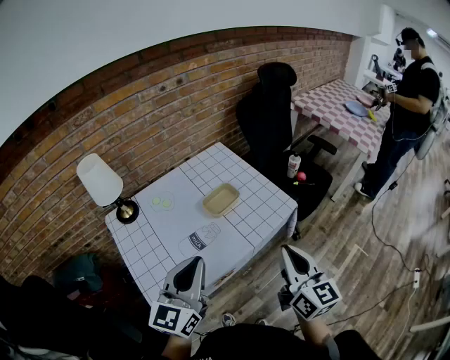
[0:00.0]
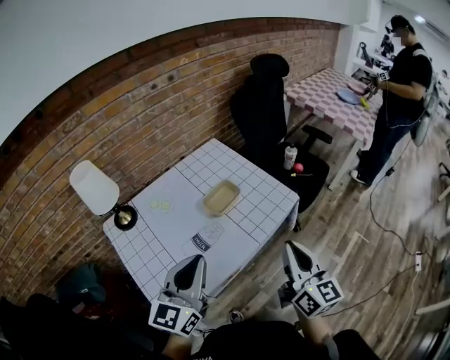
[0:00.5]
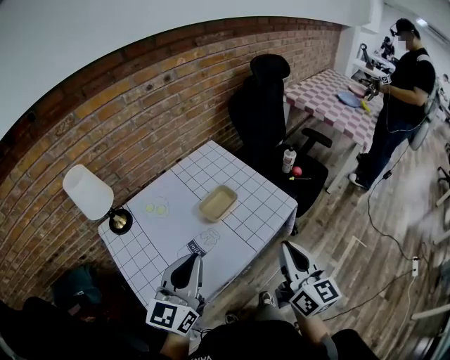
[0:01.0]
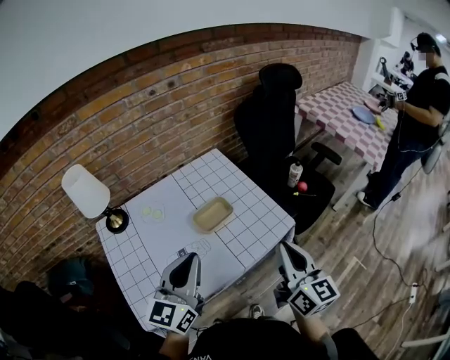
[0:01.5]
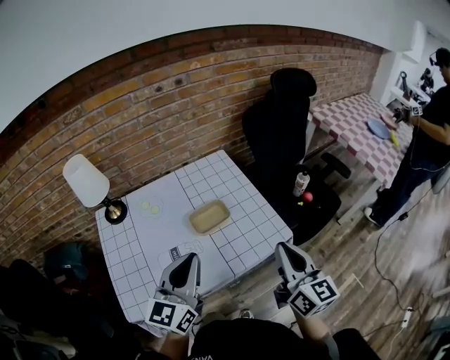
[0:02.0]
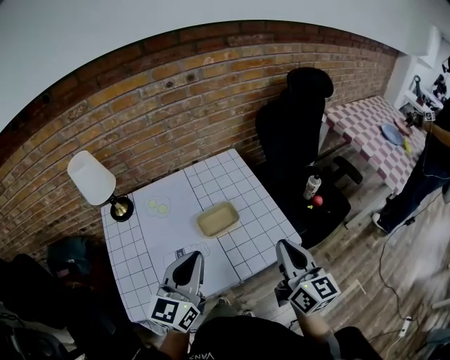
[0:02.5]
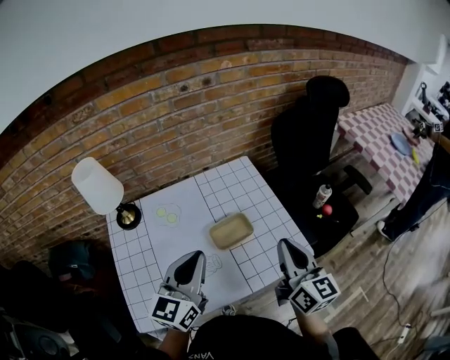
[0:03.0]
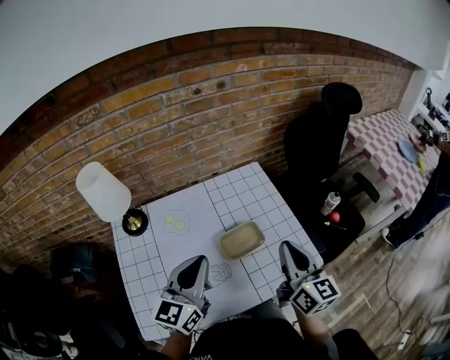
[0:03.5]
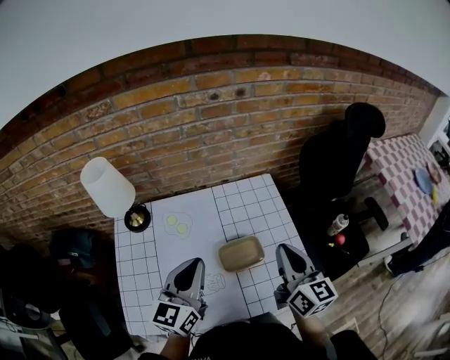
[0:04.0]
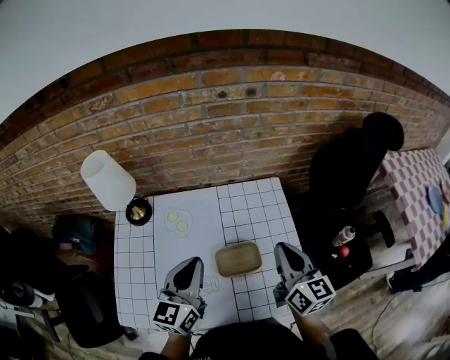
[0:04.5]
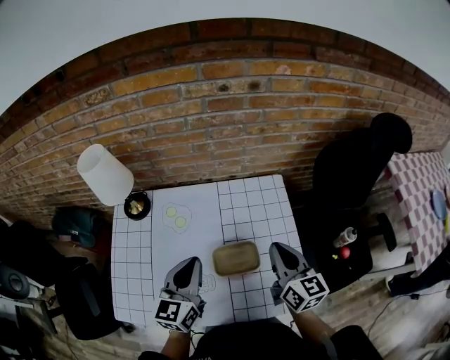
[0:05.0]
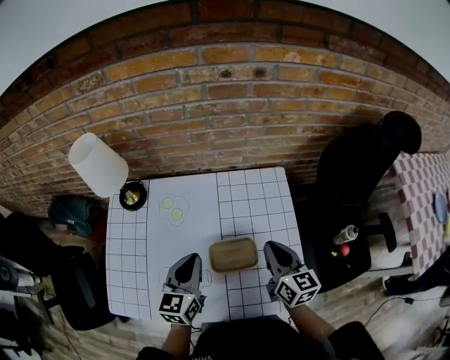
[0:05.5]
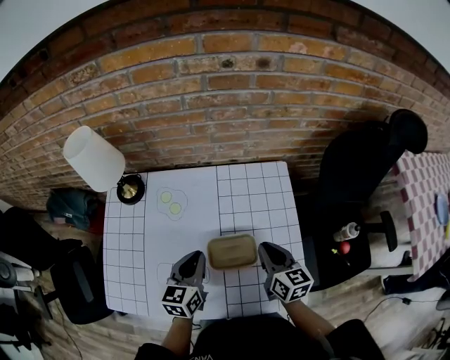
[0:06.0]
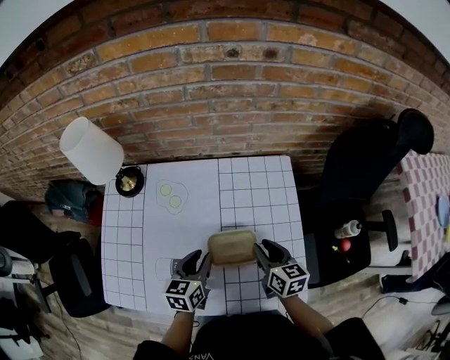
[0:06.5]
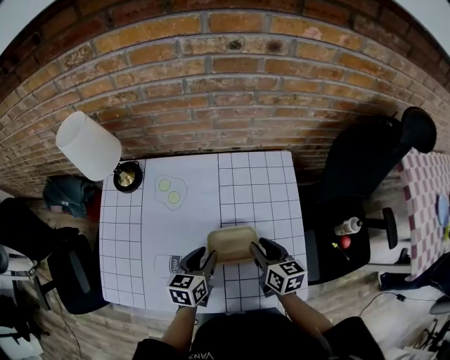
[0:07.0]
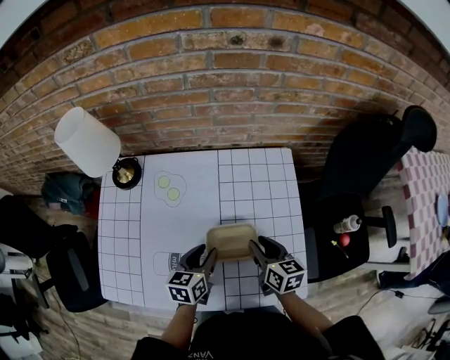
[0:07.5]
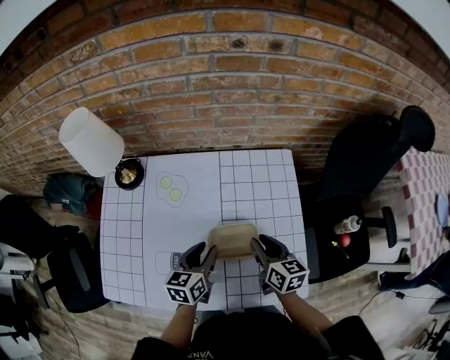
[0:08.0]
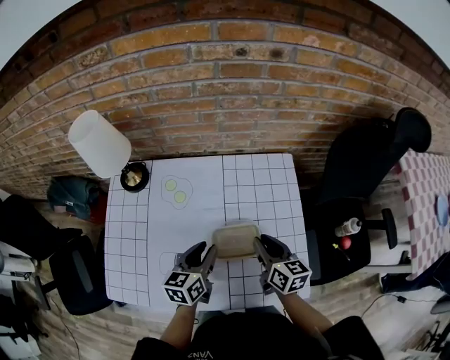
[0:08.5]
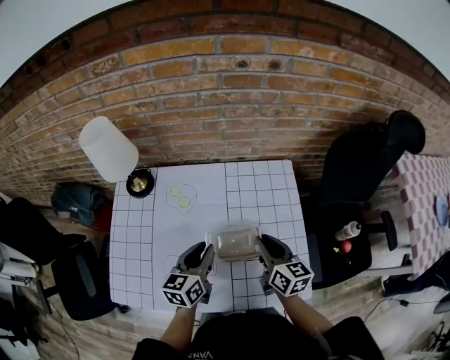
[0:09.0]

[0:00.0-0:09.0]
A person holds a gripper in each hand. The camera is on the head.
0.0 to 2.0 s: The grippers both shift forward and to the right by approximately 15 cm.
2.0 to 4.5 s: The grippers both shift forward by approximately 20 cm. The left gripper swivels some 20 degrees. Meanwhile the right gripper rotates approximately 20 degrees.
4.5 to 7.0 s: The two grippers go some 20 cm downward. The left gripper rotates roughly 30 degrees, and opens its fingers, while the right gripper changes its angle by approximately 30 degrees, and opens up.
7.0 to 9.0 s: Both grippers move upward, some 10 cm.

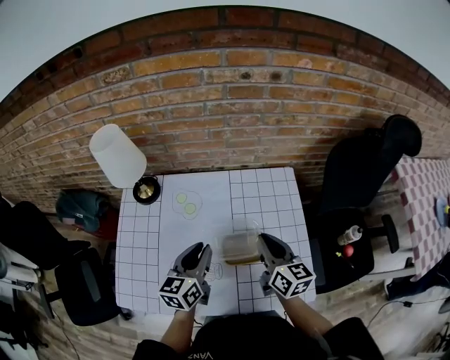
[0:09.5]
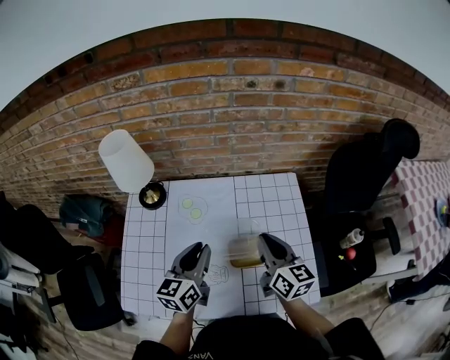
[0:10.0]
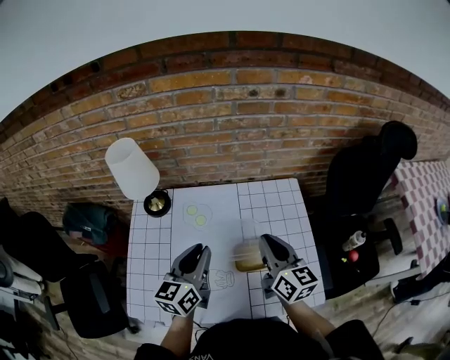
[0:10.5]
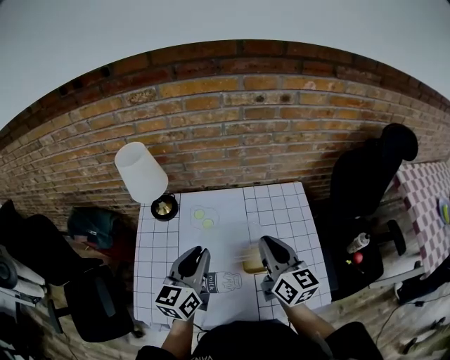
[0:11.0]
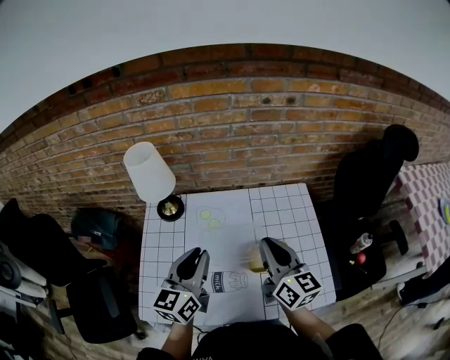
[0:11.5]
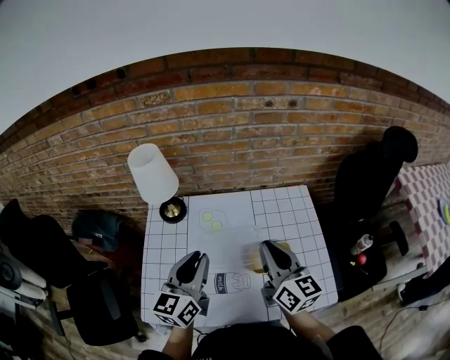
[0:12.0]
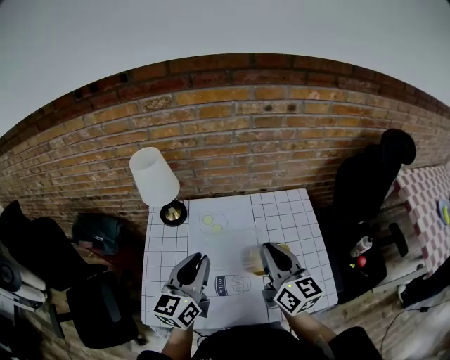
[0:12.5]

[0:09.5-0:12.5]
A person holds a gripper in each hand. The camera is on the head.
9.5 to 11.0 s: Both grippers move upward and to the left, roughly 10 cm.
11.0 to 12.5 s: The right gripper moves roughly 5 cm; the left gripper shifts by approximately 5 cm.

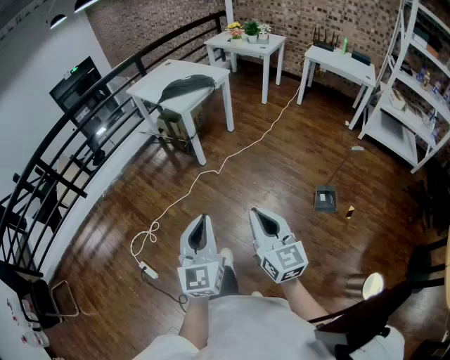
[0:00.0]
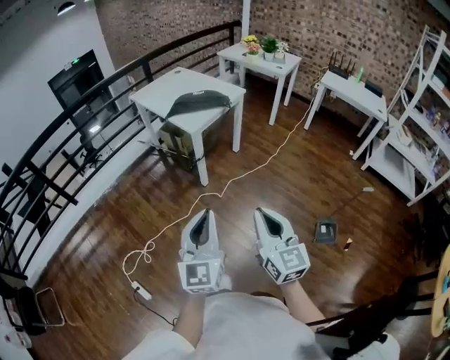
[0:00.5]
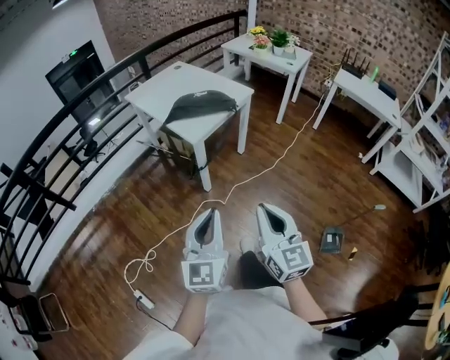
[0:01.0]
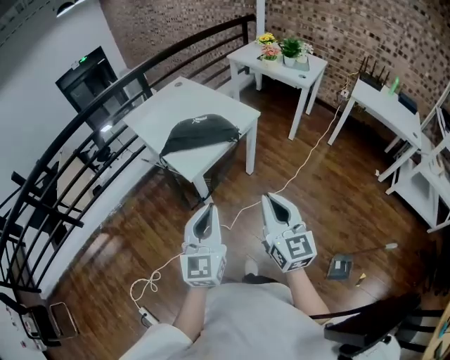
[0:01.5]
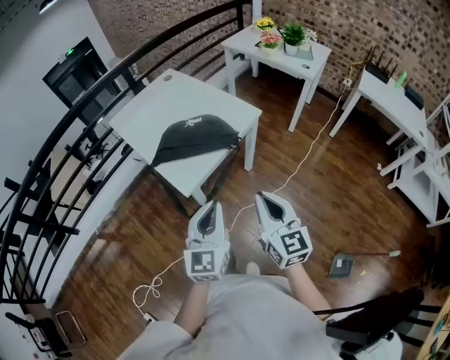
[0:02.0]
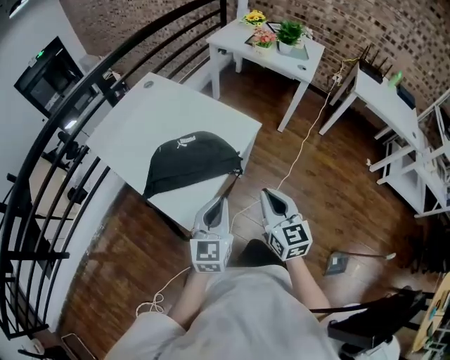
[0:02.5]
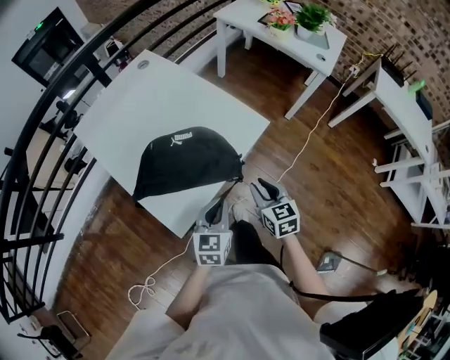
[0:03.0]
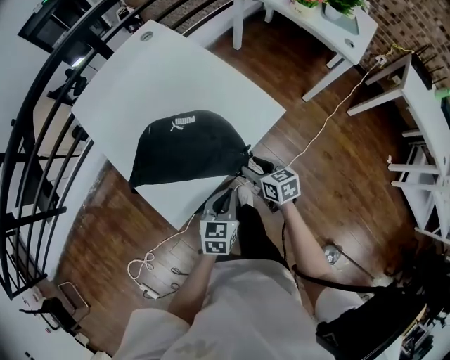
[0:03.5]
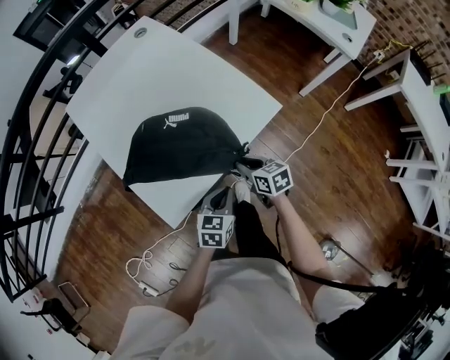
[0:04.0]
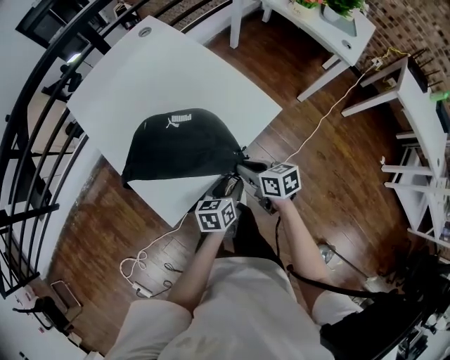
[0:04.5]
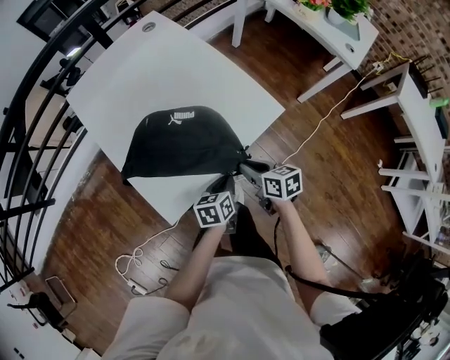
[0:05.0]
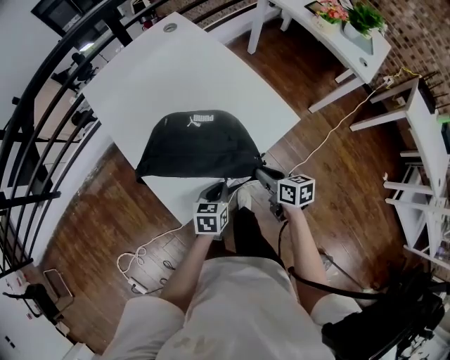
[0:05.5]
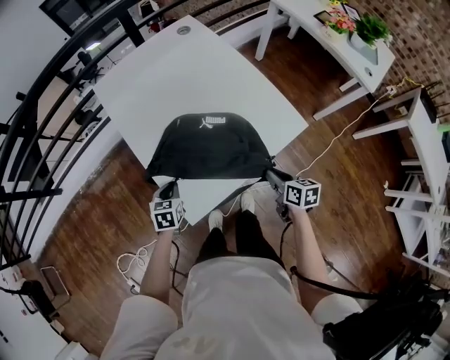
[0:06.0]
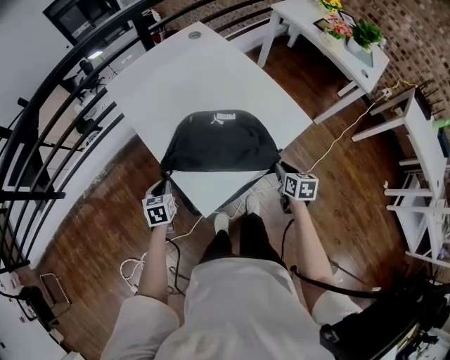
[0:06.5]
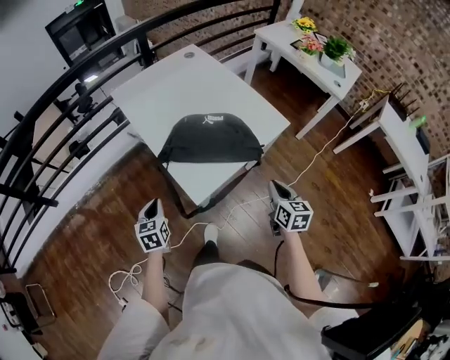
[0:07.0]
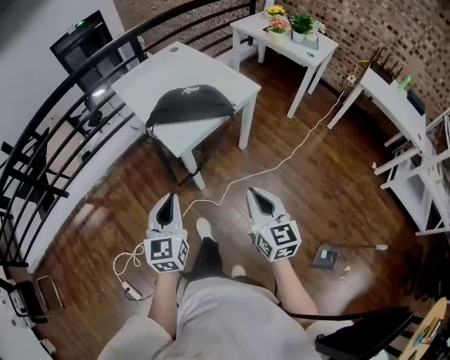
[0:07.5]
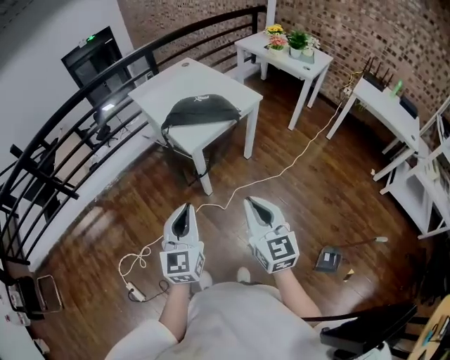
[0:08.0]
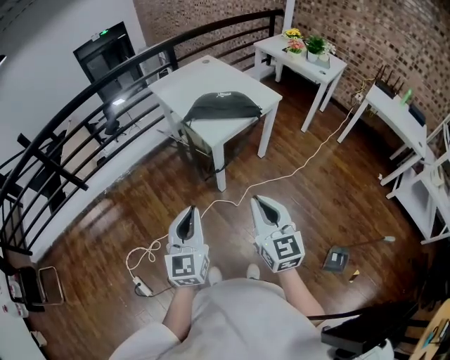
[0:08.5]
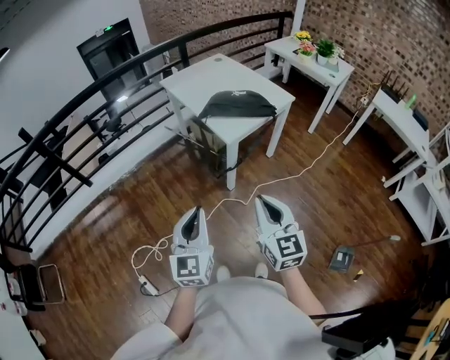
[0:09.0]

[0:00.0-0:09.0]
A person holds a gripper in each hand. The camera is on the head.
0.0 to 2.0 s: The two grippers travel together, forward, about 70 cm.
2.0 to 4.5 s: The right gripper is displaced forward and downward by some 40 cm, rotates approximately 50 degrees, and opens, then closes again. Meanwhile the left gripper goes roughly 40 cm downward and forward, points its fingers approximately 30 degrees further downward, and opens up.
4.5 to 7.0 s: The right gripper travels backward and upward by approximately 15 cm, and swivels about 30 degrees. Meanwhile the left gripper is displaced to the left by approximately 40 cm, turns by about 30 degrees, and closes its fingers.
7.0 to 9.0 s: The pair of grippers is taken backward, approximately 40 cm. The two grippers go about 20 cm upward. The left gripper points its fingers some 30 degrees further upward, while the right gripper swivels approximately 30 degrees.

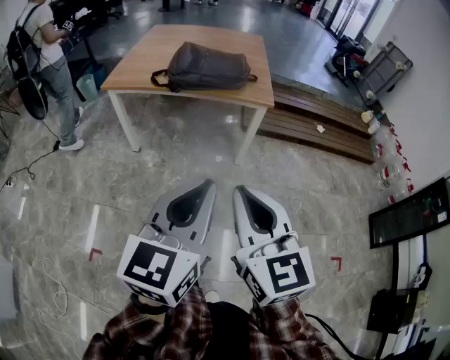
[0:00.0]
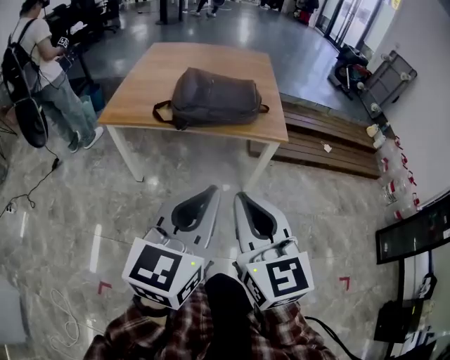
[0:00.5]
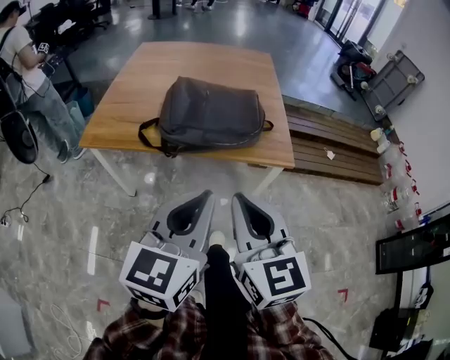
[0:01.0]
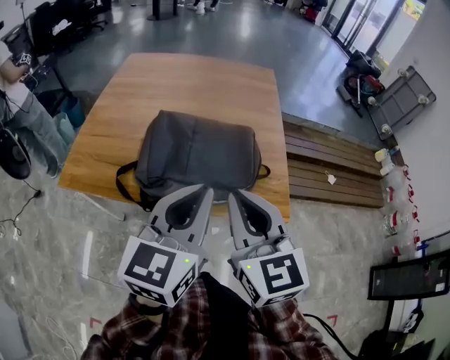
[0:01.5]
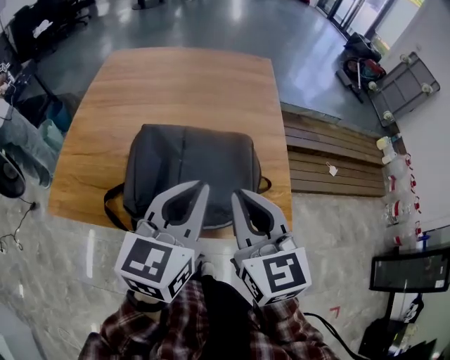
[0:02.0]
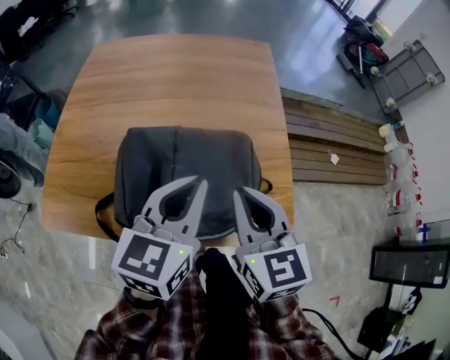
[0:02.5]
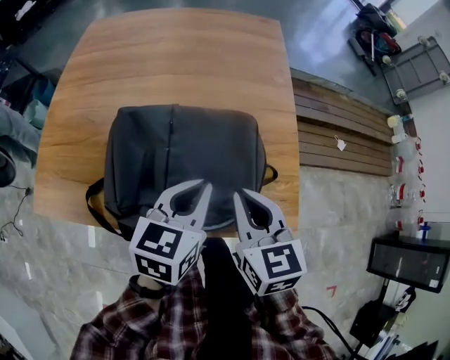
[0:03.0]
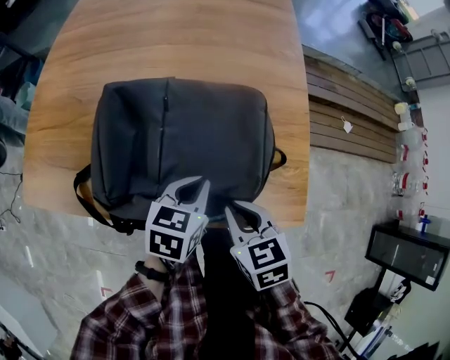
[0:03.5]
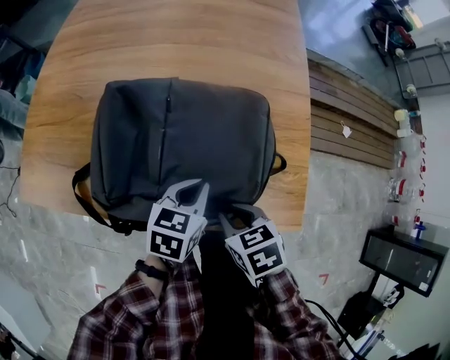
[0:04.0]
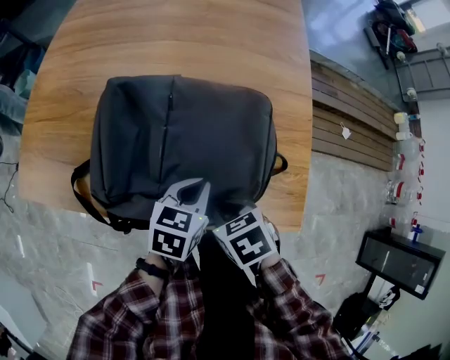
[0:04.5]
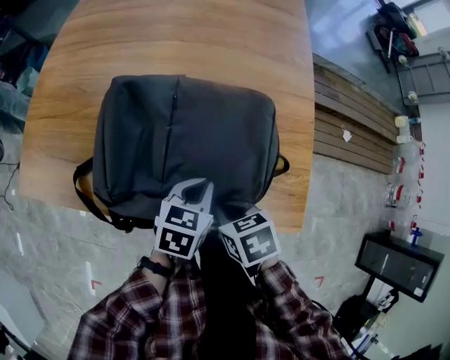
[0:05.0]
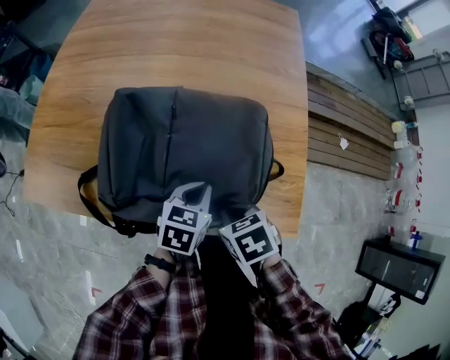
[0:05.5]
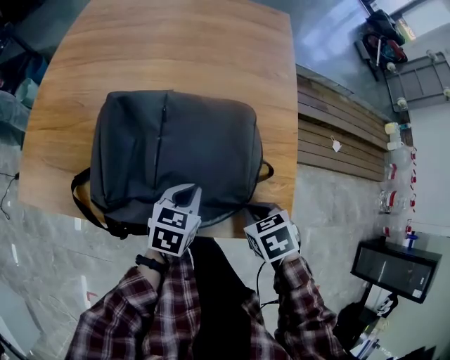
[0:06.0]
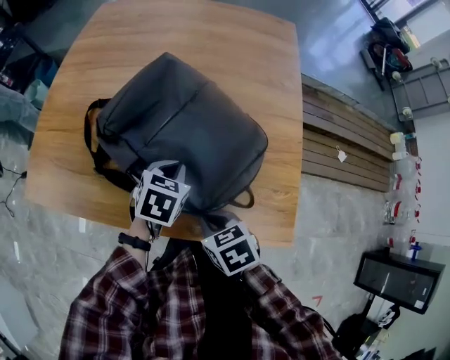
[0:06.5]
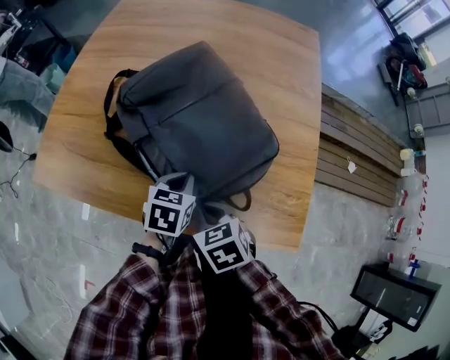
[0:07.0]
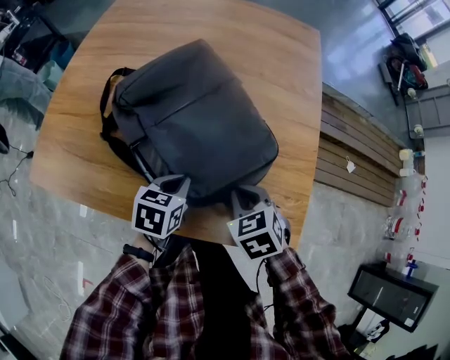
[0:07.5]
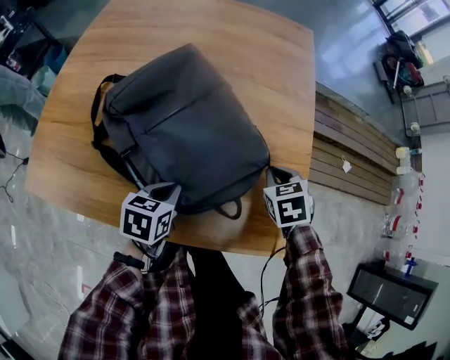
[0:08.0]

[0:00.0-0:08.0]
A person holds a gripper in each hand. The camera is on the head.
0.0 to 2.0 s: Both grippers are carried forward, roughly 70 cm.
2.0 to 4.0 s: Both grippers move downward, about 30 cm. The right gripper tips its fingers downward by some 50 degrees. The left gripper points its fingers some 30 degrees further downward.
4.0 to 6.0 s: The right gripper moves to the right, about 10 cm.
6.0 to 8.0 s: The right gripper shifts by some 15 cm. The left gripper ends up some 10 cm from where it was.
